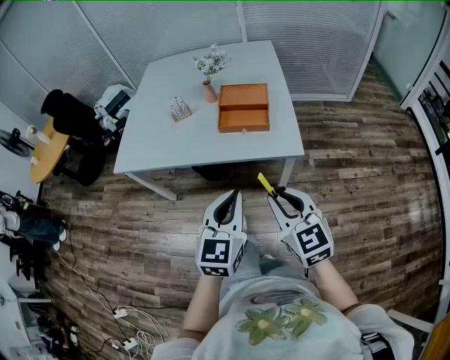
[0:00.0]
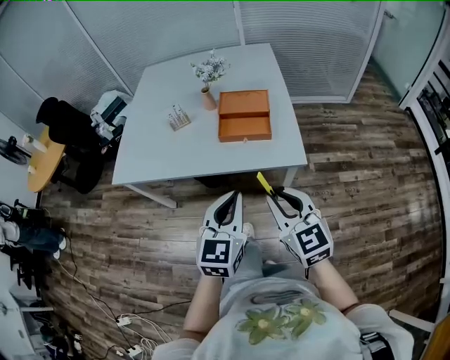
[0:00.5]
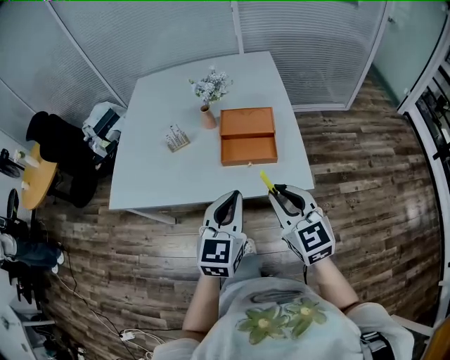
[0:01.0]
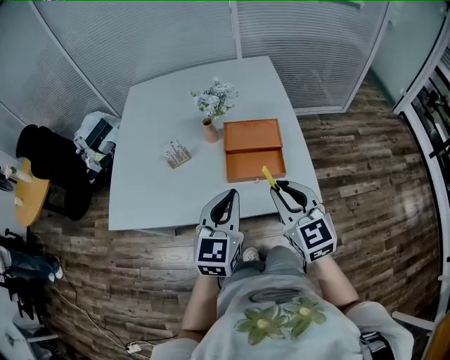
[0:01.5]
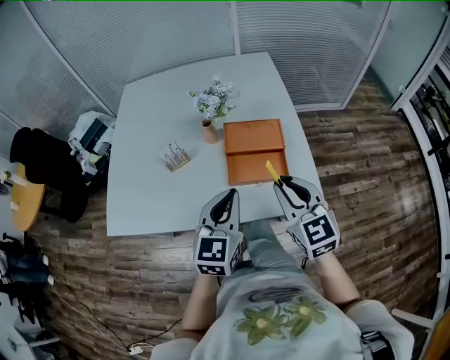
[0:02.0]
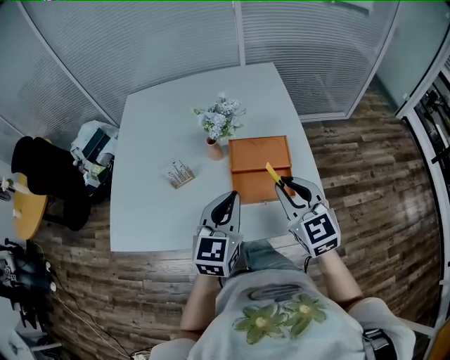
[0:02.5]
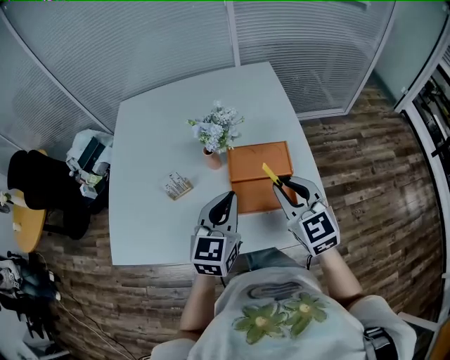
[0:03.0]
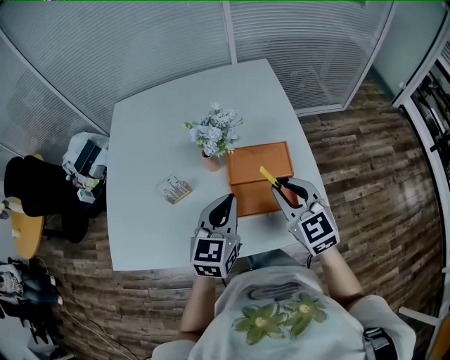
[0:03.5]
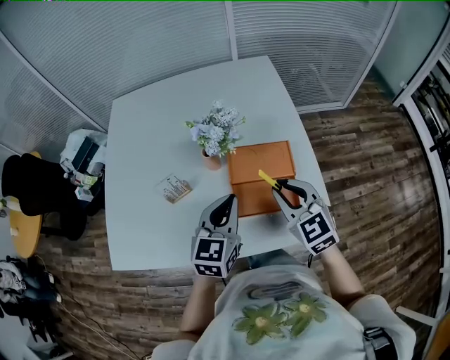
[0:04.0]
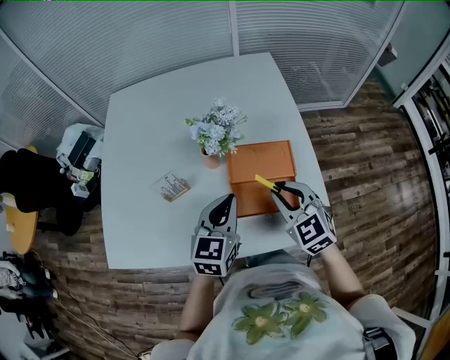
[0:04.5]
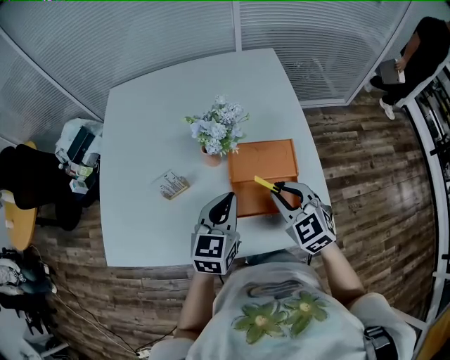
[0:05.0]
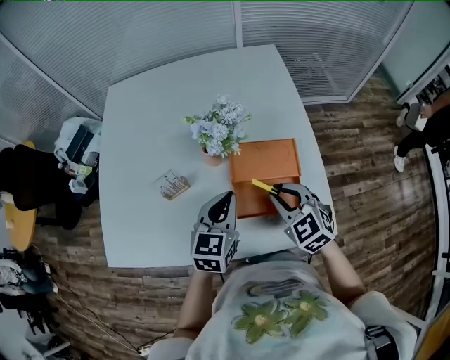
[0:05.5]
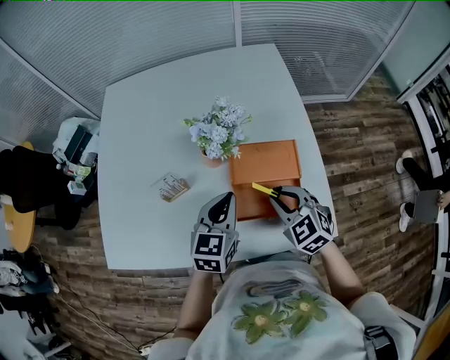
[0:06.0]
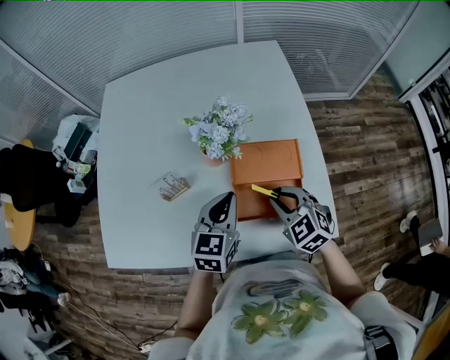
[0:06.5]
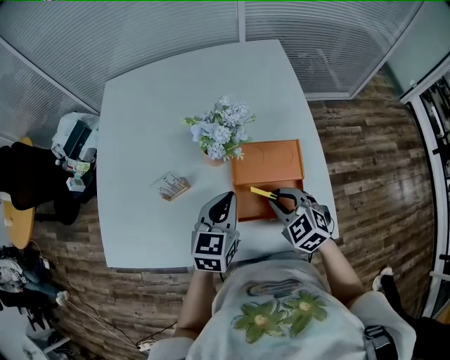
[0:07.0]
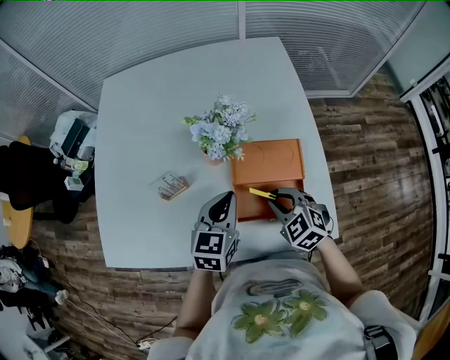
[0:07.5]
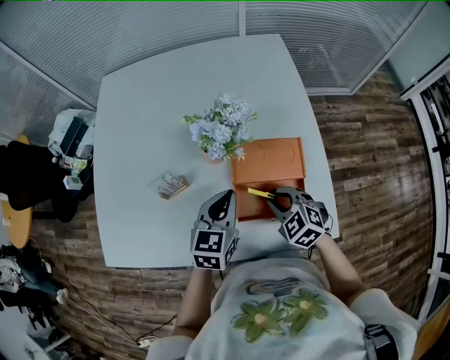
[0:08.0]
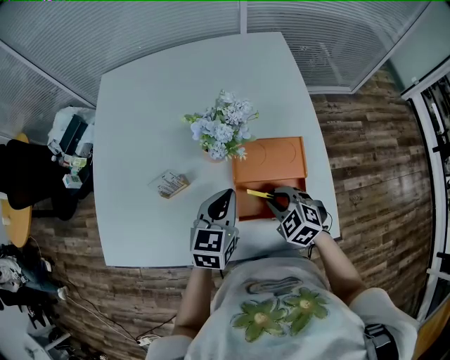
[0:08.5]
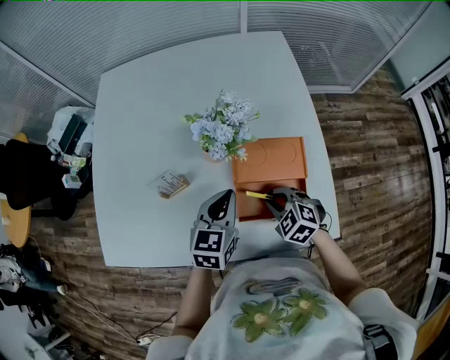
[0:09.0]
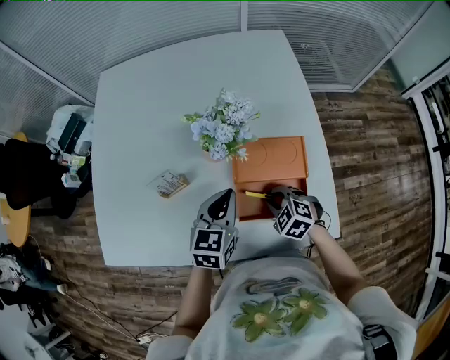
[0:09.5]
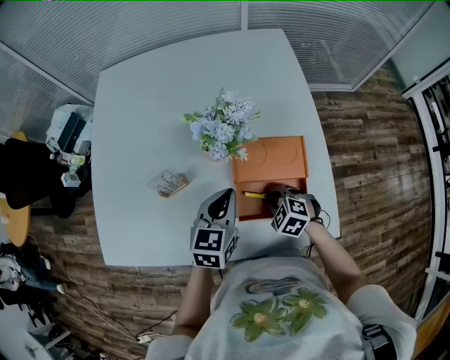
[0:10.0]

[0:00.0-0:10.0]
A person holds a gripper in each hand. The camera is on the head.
0:00.0 to 0:02.0: Both grippers move forward, some 30 cm.
0:02.0 to 0:04.0: The two grippers go roughly 15 cm forward.
0:04.0 to 0:06.0: The left gripper goes about 5 cm downward; the right gripper heads downward, covering approximately 10 cm.
0:06.0 to 0:08.0: The right gripper goes some 5 cm downward.
0:08.0 to 0:10.0: The right gripper shifts approximately 10 cm downward.

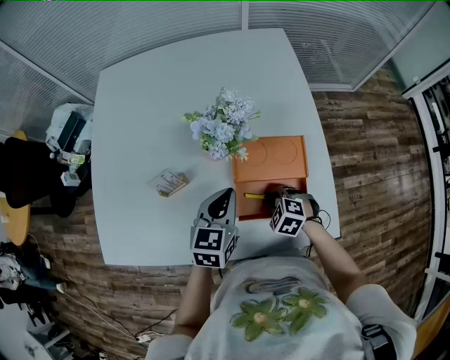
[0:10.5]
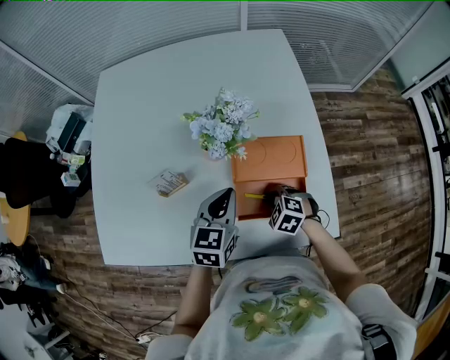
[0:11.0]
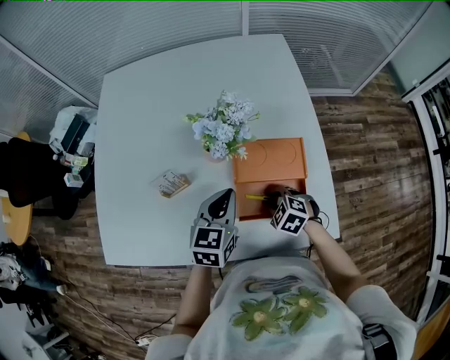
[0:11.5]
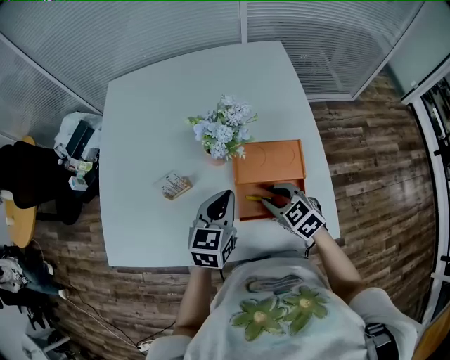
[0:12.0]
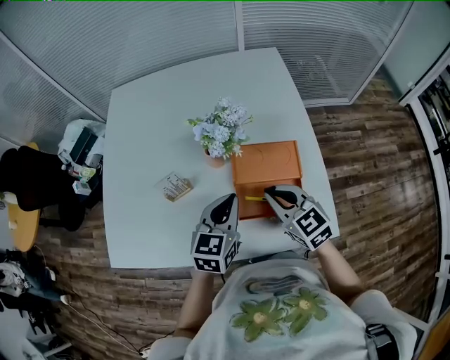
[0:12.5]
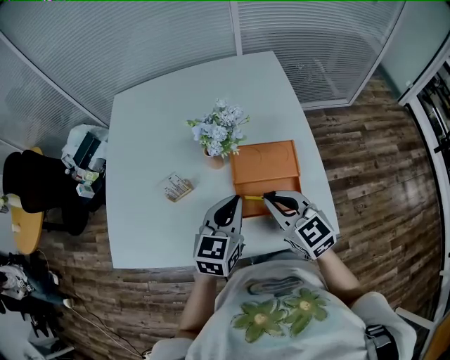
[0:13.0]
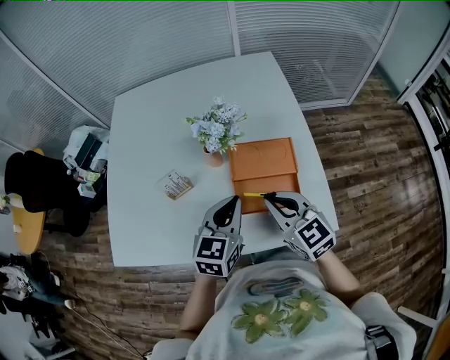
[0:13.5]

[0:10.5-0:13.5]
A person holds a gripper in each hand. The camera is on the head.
0:10.5 to 0:12.0: The right gripper heads upward, covering approximately 10 cm, and changes its angle by approximately 30 degrees.
0:12.0 to 0:13.5: The right gripper is displaced upward and backward by approximately 15 cm, swivels approximately 30 degrees, and closes up. Meanwhile the left gripper goes roughly 10 cm backward and upward.

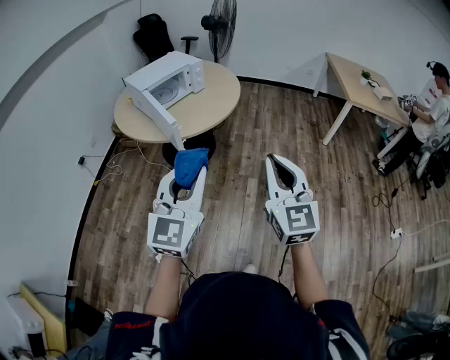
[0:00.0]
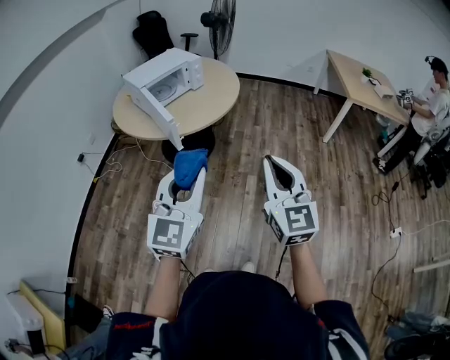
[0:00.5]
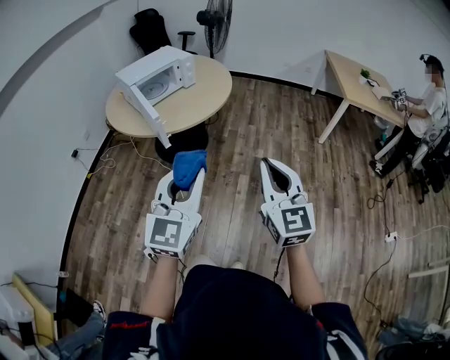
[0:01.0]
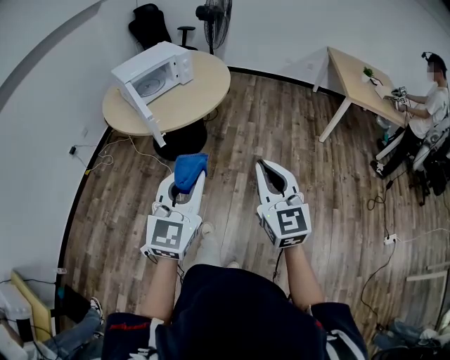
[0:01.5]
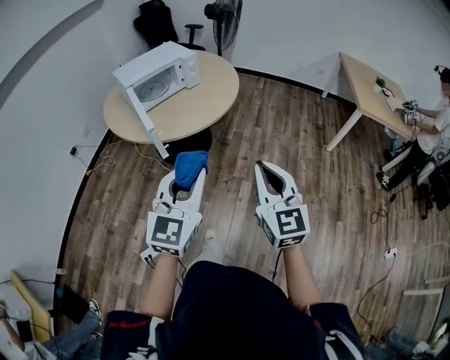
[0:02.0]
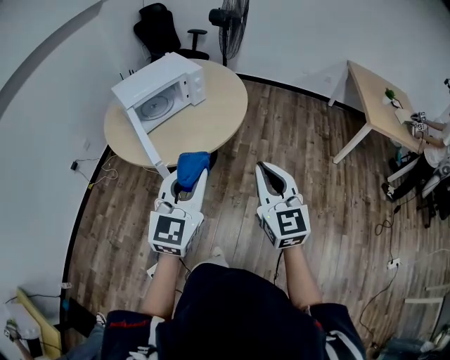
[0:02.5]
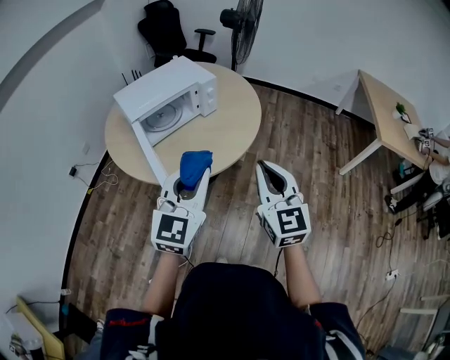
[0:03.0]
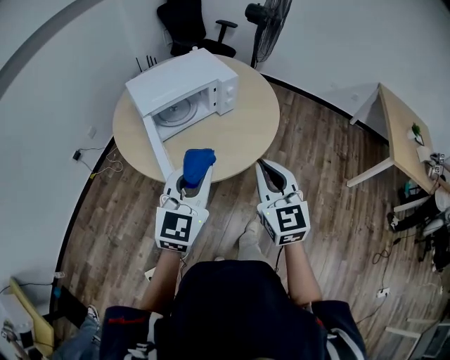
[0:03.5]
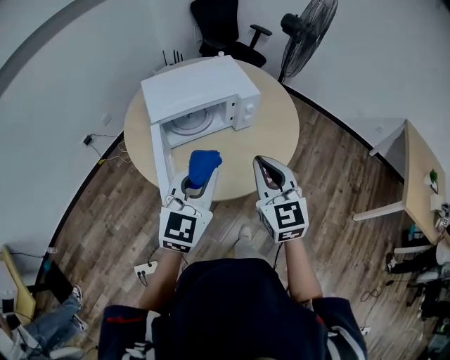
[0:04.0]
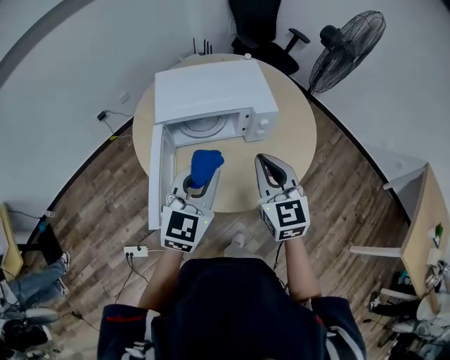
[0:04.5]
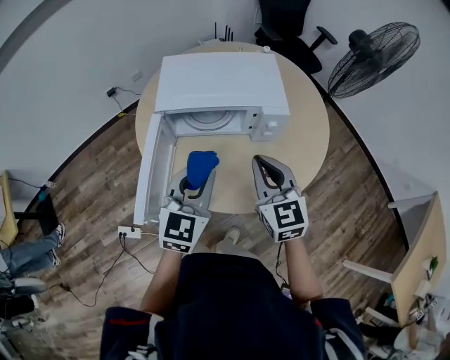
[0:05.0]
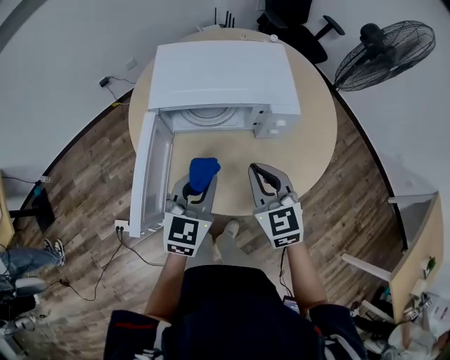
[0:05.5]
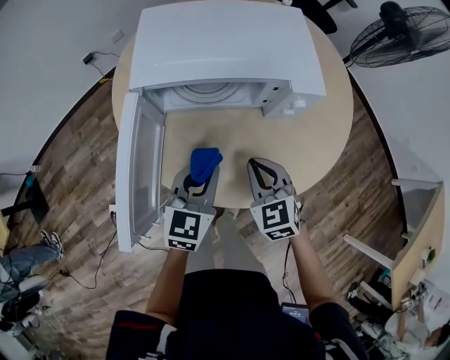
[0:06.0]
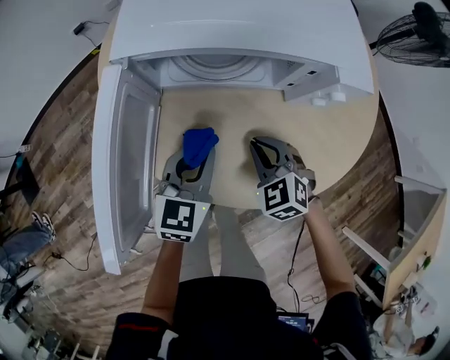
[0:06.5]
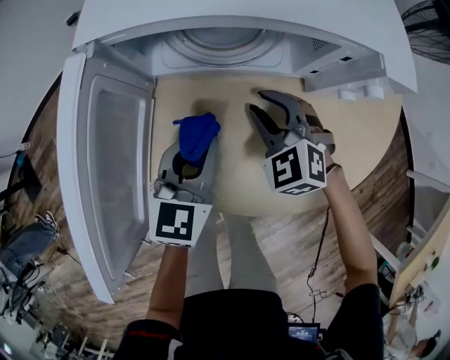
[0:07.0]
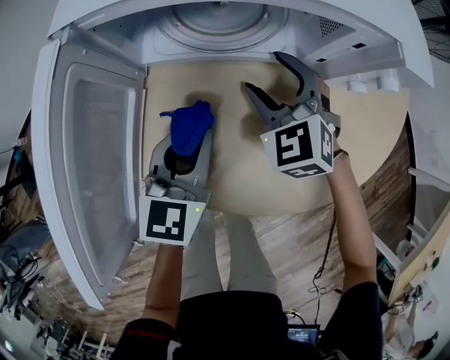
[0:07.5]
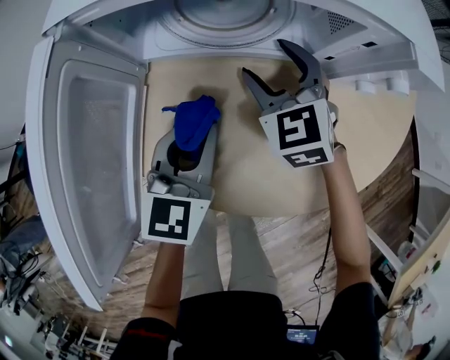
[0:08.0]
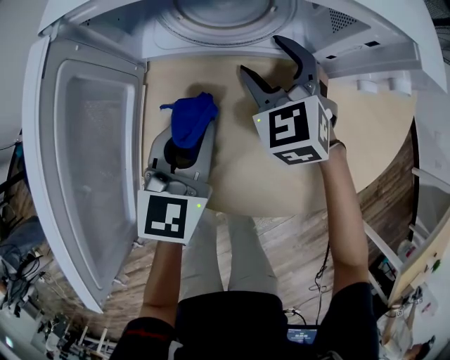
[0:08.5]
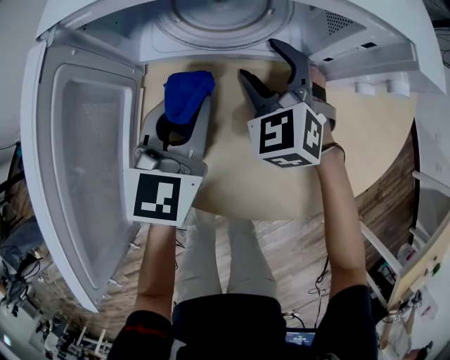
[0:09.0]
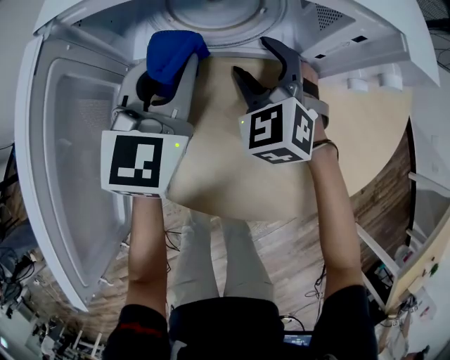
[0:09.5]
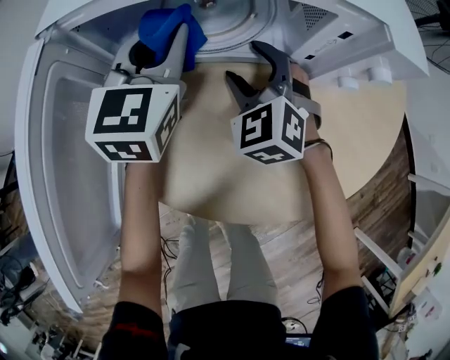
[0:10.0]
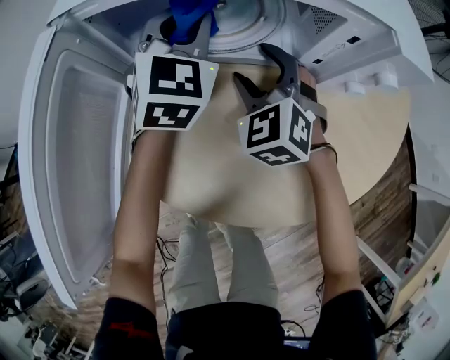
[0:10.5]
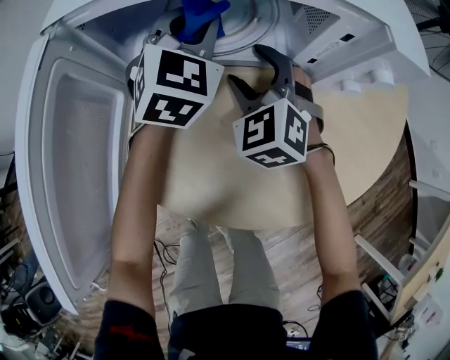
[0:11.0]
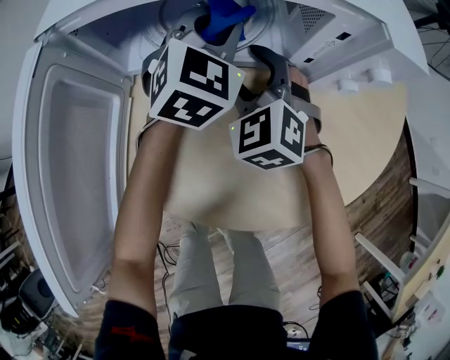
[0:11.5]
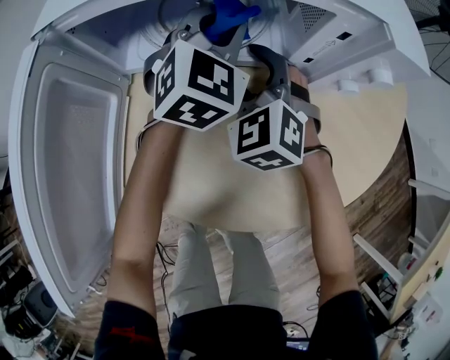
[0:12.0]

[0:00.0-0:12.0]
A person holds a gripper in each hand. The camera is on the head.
0:00.0 to 0:02.0: The left gripper moves forward, to the right and downward, about 15 cm, while the right gripper shifts approximately 15 cm forward and downward.
0:02.0 to 0:04.0: Both grippers are carried forward, approximately 50 cm. The right gripper swivels approximately 20 degrees.
0:04.0 to 0:06.0: Both grippers travel together downward and forward, approximately 30 cm. The right gripper swivels approximately 40 degrees. Meanwhile the left gripper turns by approximately 30 degrees.
0:06.0 to 0:08.0: The left gripper moves downward and forward, roughly 15 cm. The right gripper travels forward and downward by some 20 cm, and opens up.
0:08.0 to 0:10.0: The left gripper shifts approximately 15 cm forward and upward.
0:10.0 to 0:12.0: The left gripper shifts some 10 cm to the right, and swivels approximately 30 degrees.

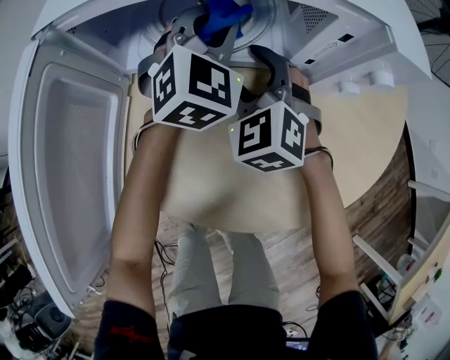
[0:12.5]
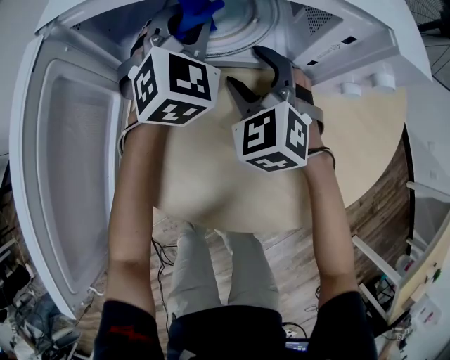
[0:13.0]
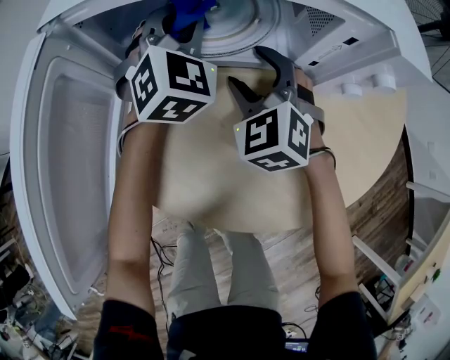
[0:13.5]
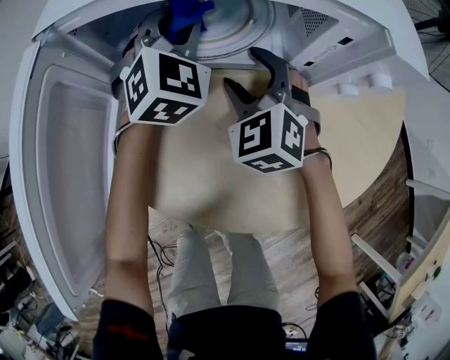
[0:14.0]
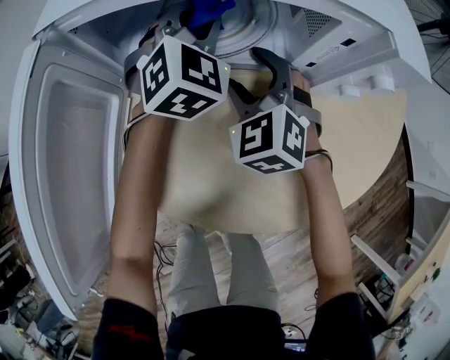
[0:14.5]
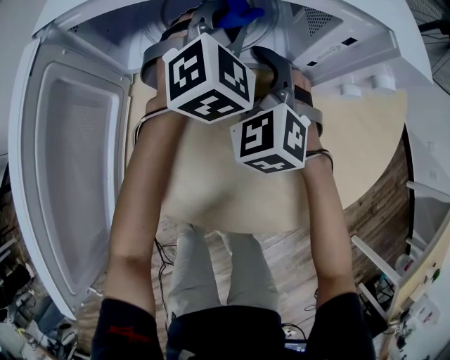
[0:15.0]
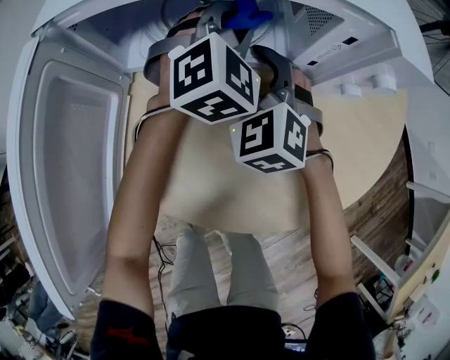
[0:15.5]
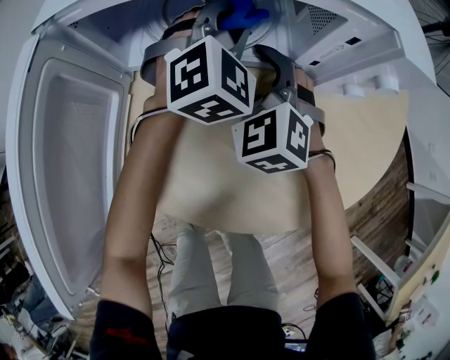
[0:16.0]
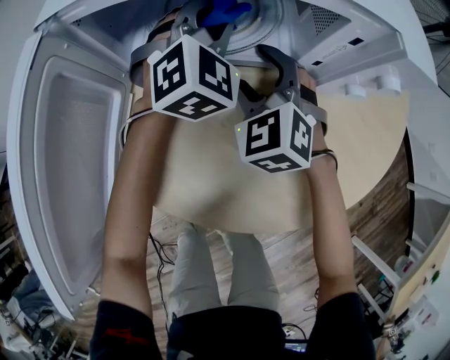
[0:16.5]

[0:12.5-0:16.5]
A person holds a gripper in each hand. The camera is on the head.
0:14.5 to 0:16.5: The grippers stay close to where they were, moving slightly.
